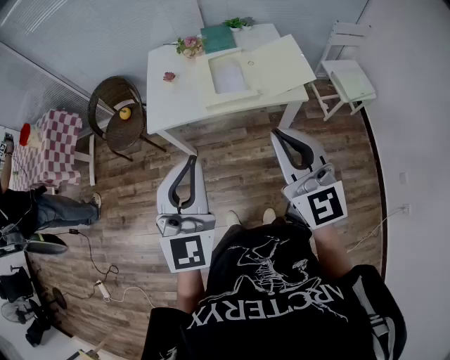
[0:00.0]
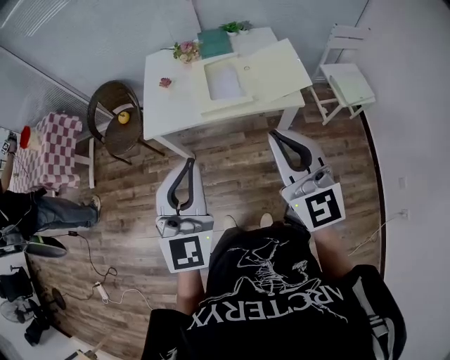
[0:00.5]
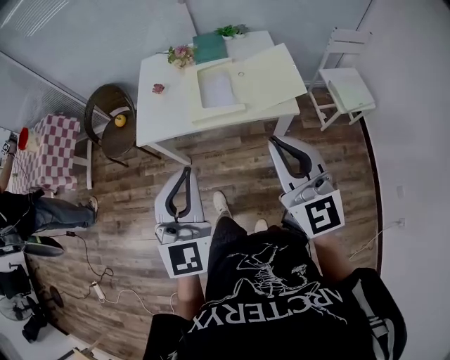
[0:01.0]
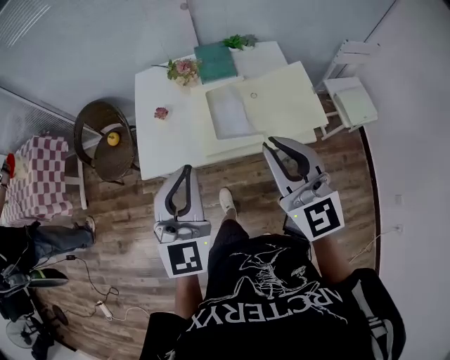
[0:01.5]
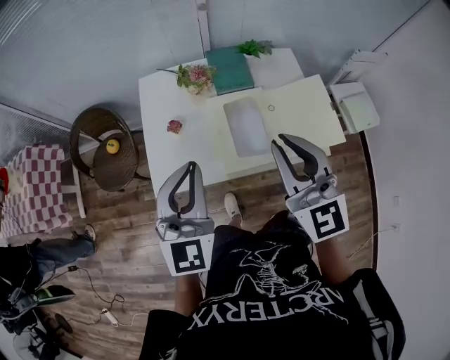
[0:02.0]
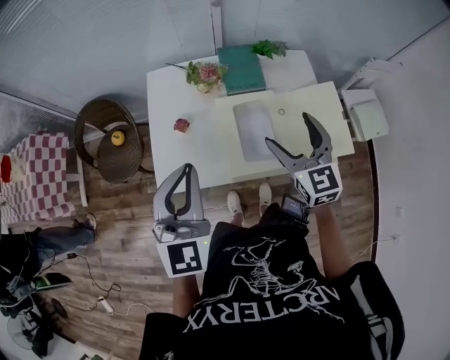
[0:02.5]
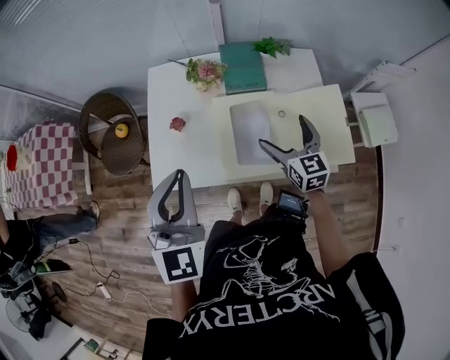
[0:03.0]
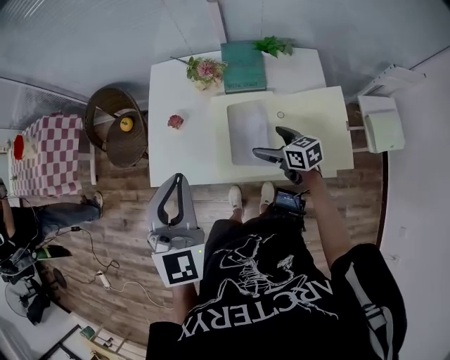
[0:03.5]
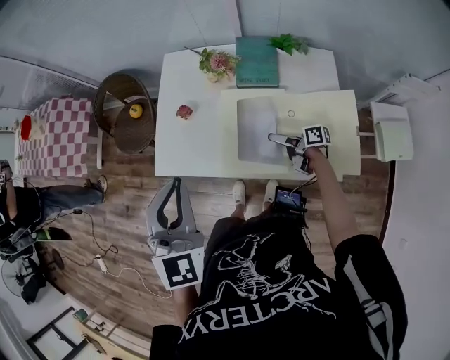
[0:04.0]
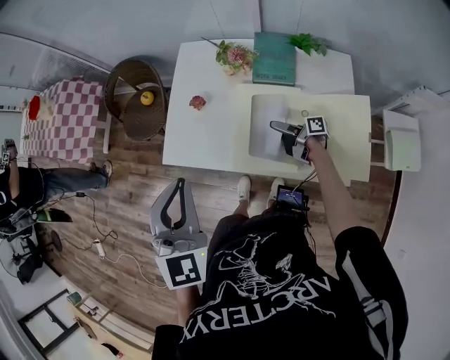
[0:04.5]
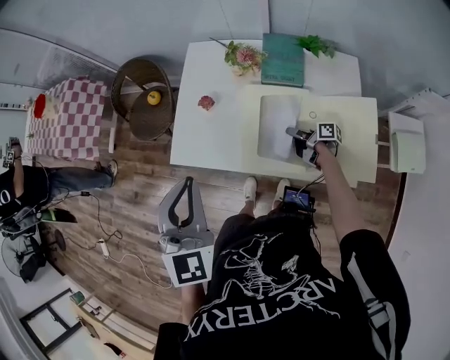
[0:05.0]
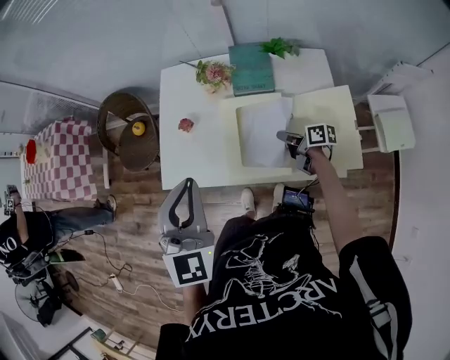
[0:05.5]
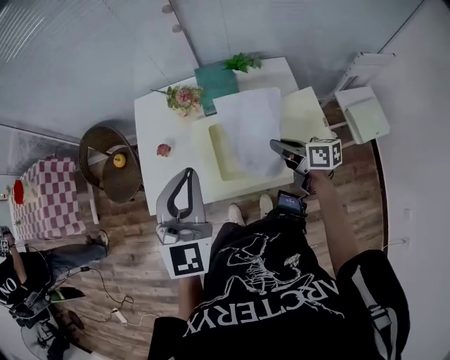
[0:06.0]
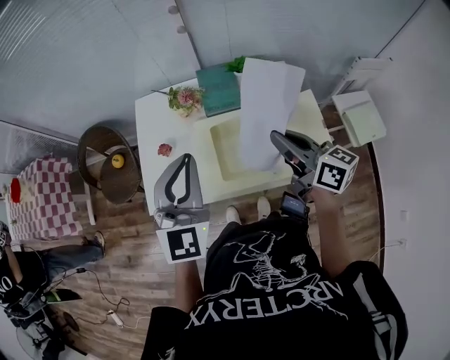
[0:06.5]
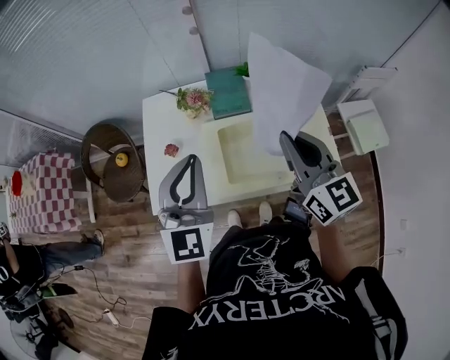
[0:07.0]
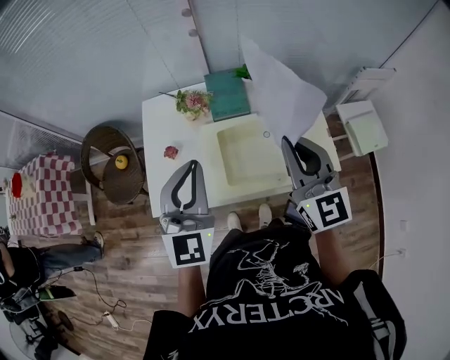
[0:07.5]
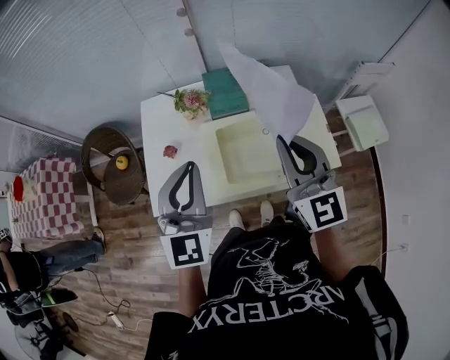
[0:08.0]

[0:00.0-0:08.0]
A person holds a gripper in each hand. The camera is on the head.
0:00.0 to 0:02.0: Both grippers move forward, approximately 35 cm.
0:02.0 to 0:04.0: The left gripper rotates approximately 20 degrees. The right gripper heads downward, covering about 40 cm, rolls clockwise, seen from behind, by approximately 80 degrees, and opens.
0:04.0 to 0:06.0: The left gripper is displaced to the right by about 10 cm, and turns by roughly 20 degrees; the right gripper moves upward, some 15 cm, turns by about 30 degrees, and closes.
0:06.0 to 0:08.0: The right gripper is displaced upward by about 20 cm, and twists roughly 60 degrees counterclockwise, seen from behind.

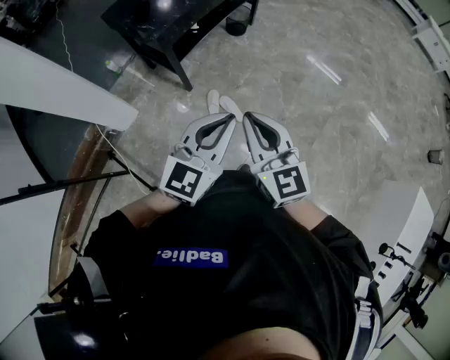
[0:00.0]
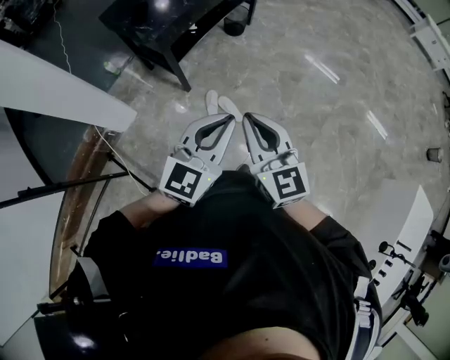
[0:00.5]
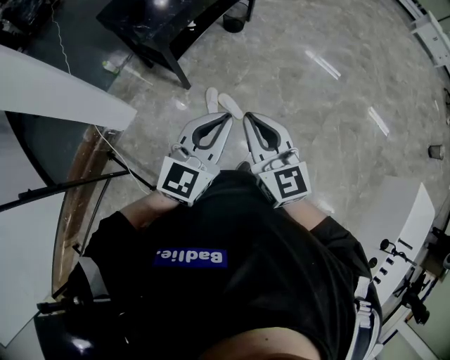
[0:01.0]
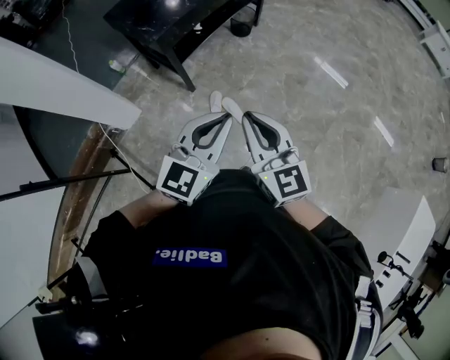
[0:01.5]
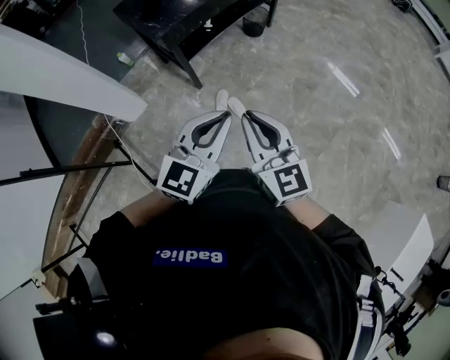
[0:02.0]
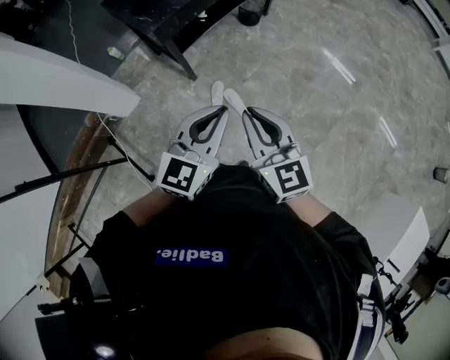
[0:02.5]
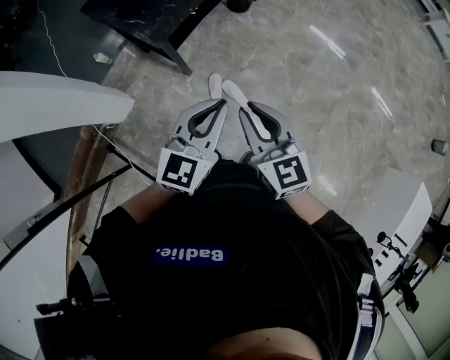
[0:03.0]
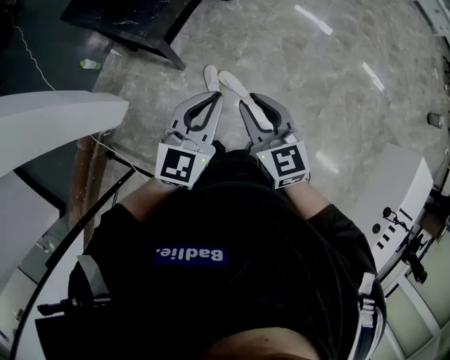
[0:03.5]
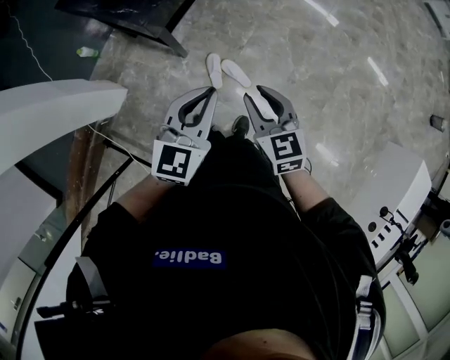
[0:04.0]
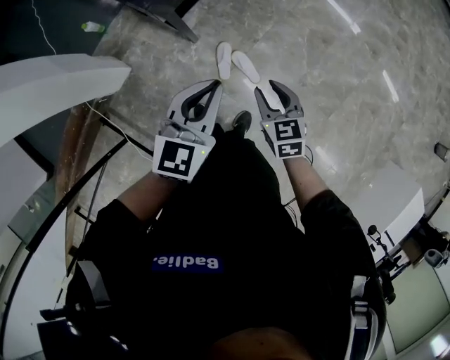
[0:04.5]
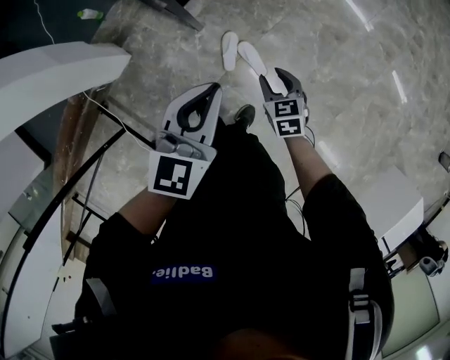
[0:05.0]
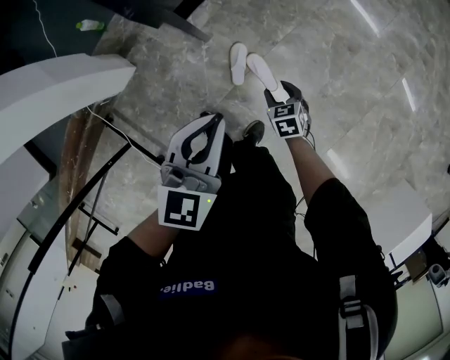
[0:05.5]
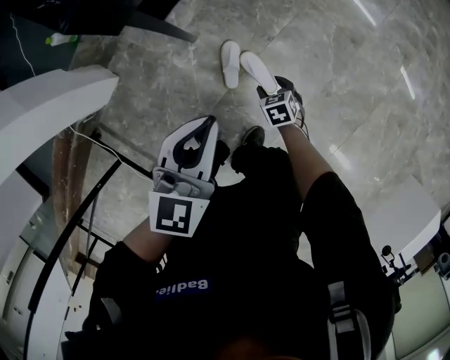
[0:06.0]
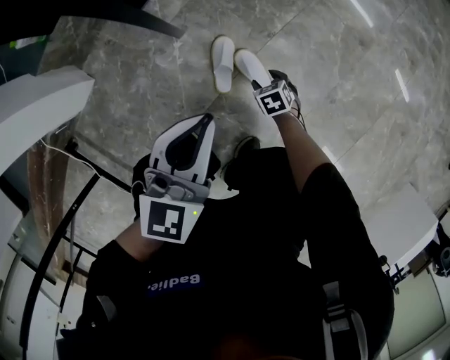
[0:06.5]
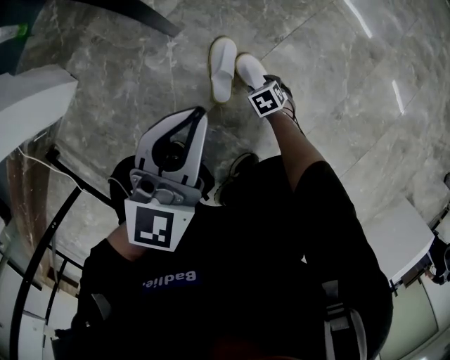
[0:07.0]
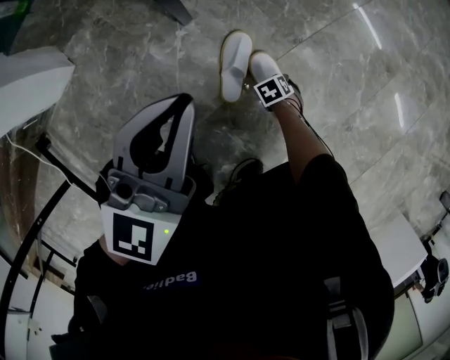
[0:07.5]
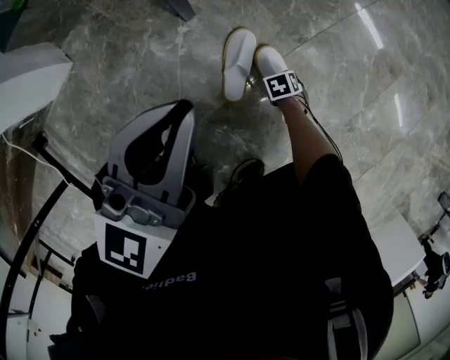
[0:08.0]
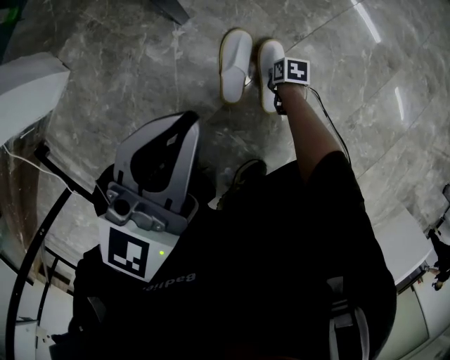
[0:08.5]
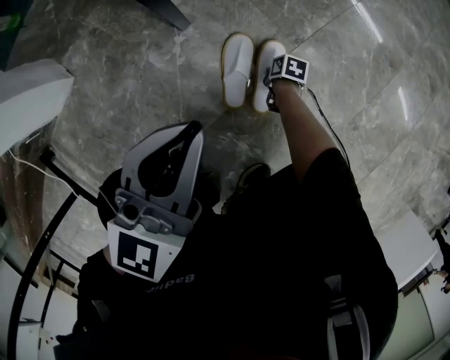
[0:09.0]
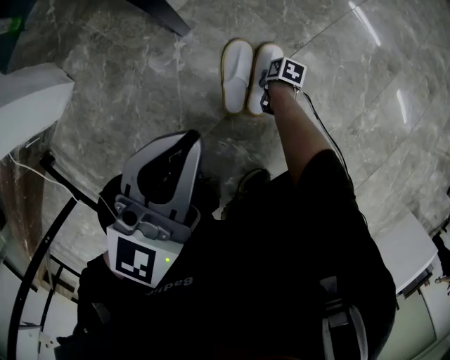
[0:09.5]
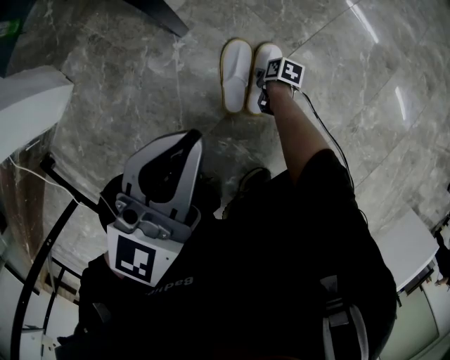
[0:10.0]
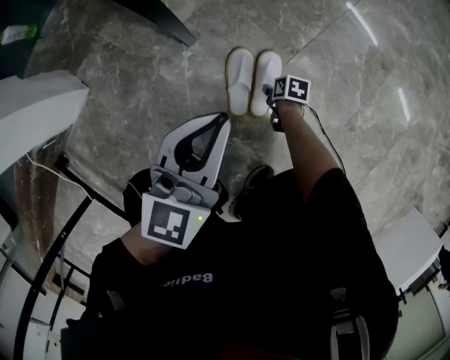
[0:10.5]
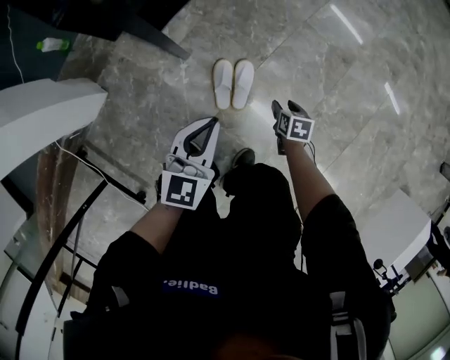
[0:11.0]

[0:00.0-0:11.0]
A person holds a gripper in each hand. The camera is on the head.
0:00.0 to 0:02.0: The right gripper goes some 5 cm to the right. The left gripper ends up some 5 cm from where it was.
0:02.0 to 0:03.5: Both grippers travel together forward, to the left and downward, roughly 25 cm. The right gripper changes its angle by about 30 degrees.
0:03.5 to 0:05.5: The left gripper moves downward, roughly 15 cm, and turns by about 20 degrees. Meanwhile the right gripper is displaced downward by some 50 cm, points its fingers about 40 degrees further downward, and opens.
0:05.5 to 0:07.5: Both grippers travel together downward, about 50 cm. The right gripper changes its angle by about 30 degrees.
0:07.5 to 0:09.0: The right gripper shifts by about 5 cm, rotates around the line of its fingers by approximately 50 degrees, clockwise from behind, and closes.
0:09.0 to 0:11.0: The left gripper travels upward by approximately 15 cm; the right gripper moves upward, roughly 35 cm, swivels approximately 20 degrees, and opens up.

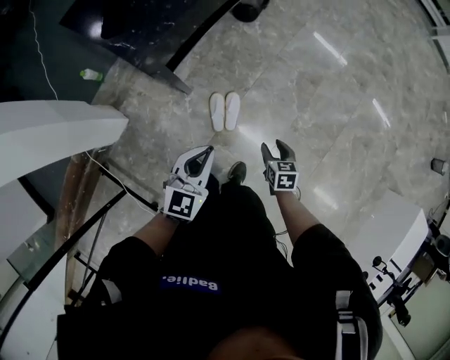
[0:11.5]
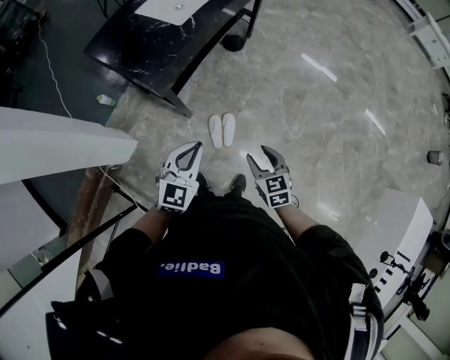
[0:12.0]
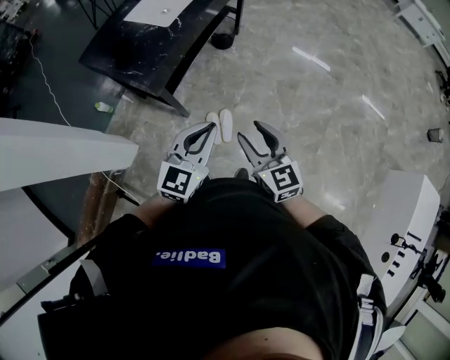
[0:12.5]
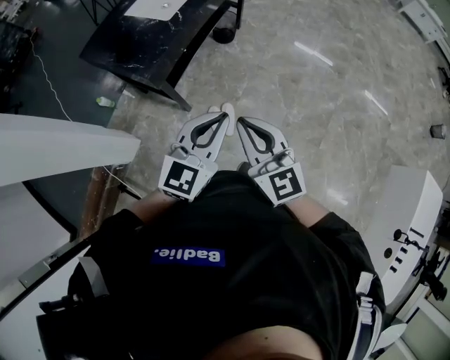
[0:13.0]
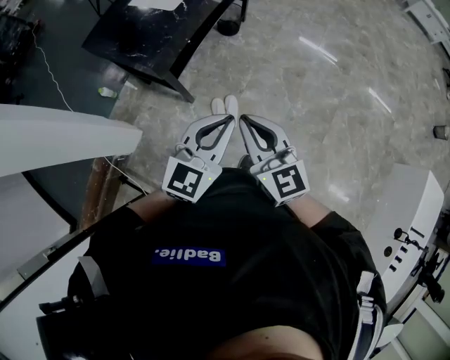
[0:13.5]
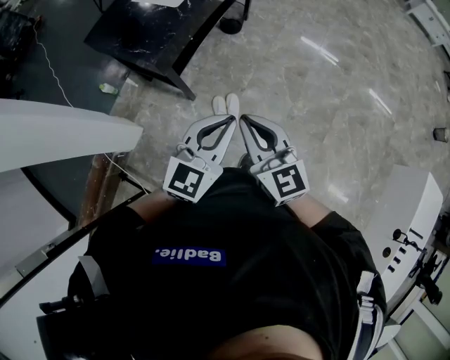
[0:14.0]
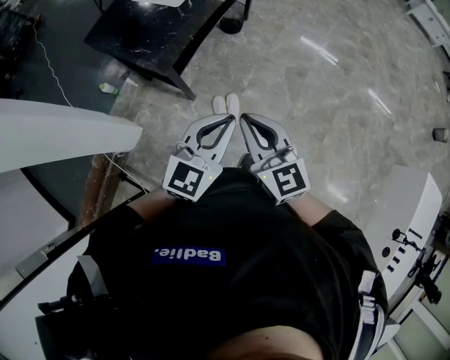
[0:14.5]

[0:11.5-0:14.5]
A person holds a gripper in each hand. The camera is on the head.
0:11.5 to 0:13.0: The left gripper heads upward, covering about 30 cm. The right gripper shifts some 50 cm upward, tips its fingers upward by roughly 50 degrees, and closes.
0:13.0 to 0:14.5: The grippers stay close to where they were, moving slightly.

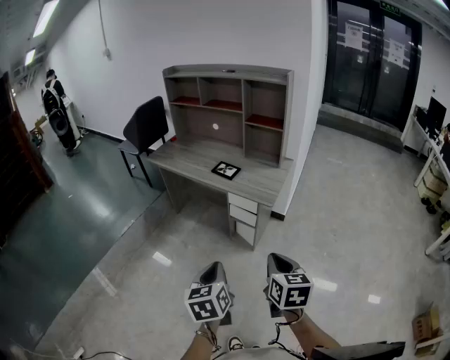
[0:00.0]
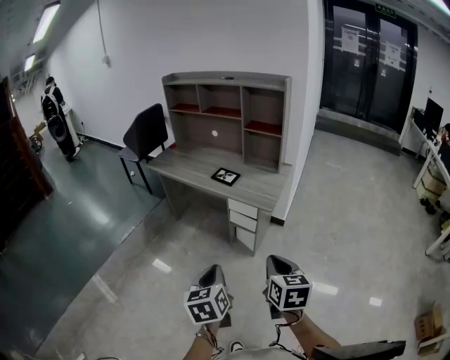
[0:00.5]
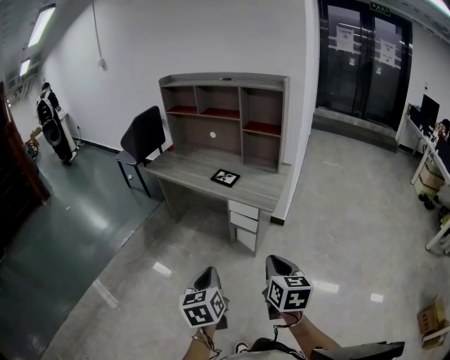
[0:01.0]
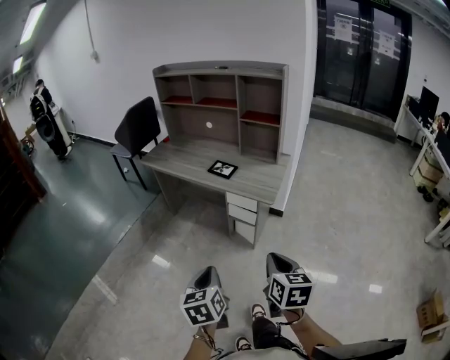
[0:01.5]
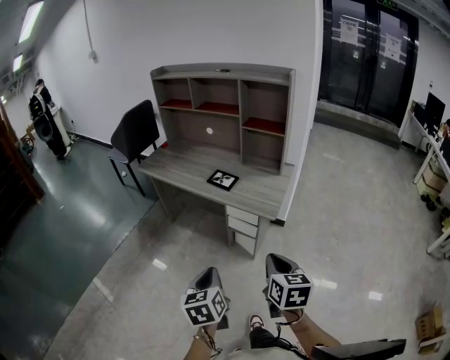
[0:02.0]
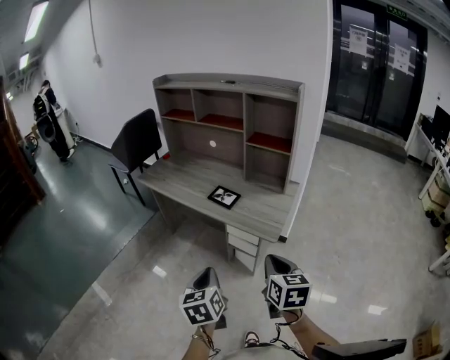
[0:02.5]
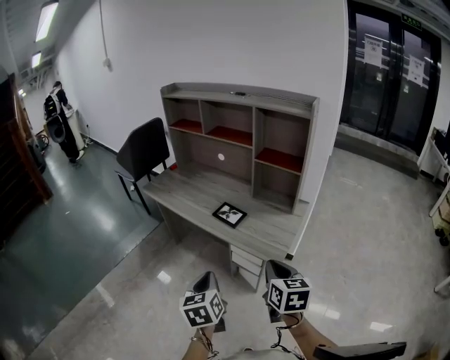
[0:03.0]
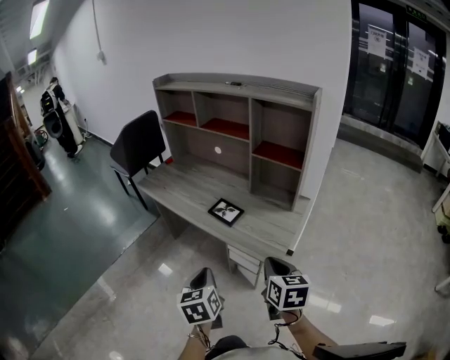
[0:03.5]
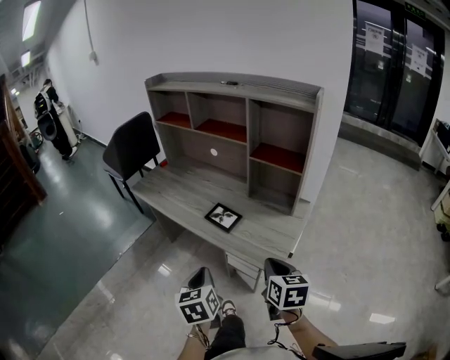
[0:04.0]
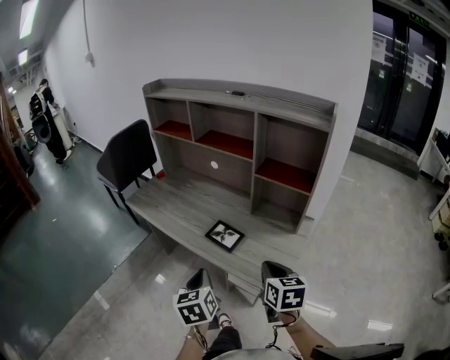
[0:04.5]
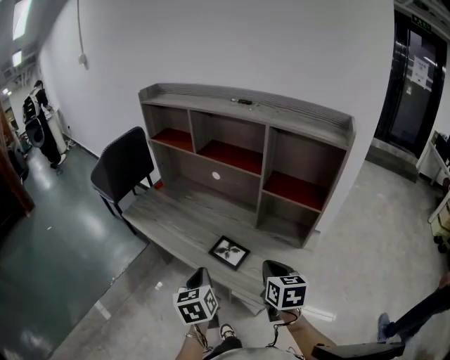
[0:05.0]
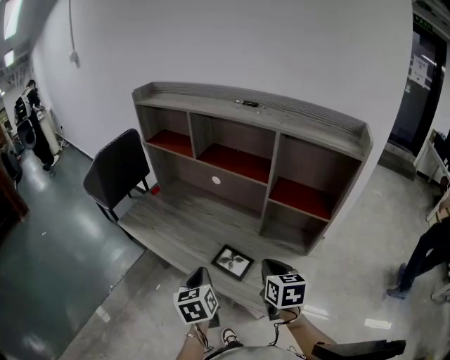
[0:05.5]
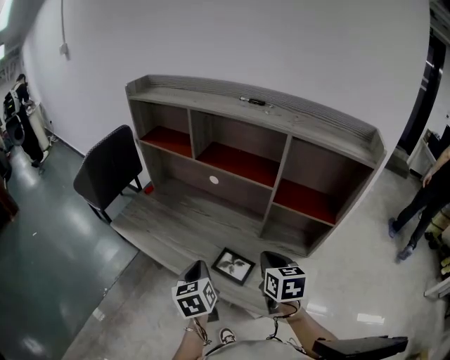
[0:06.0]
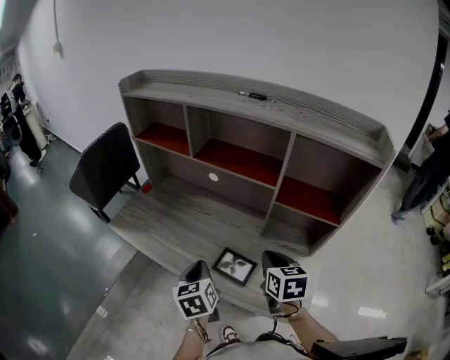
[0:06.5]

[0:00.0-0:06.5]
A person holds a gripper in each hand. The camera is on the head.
0:00.0 to 0:02.0: The grippers both shift forward by roughly 10 cm.
0:02.0 to 0:04.5: Both grippers travel together forward, some 35 cm.
0:04.5 to 0:06.5: Both grippers travel together forward, approximately 25 cm.
